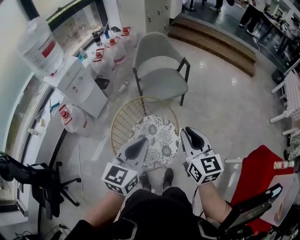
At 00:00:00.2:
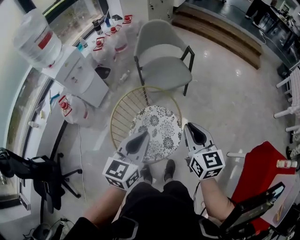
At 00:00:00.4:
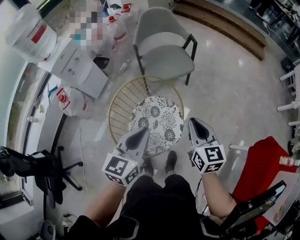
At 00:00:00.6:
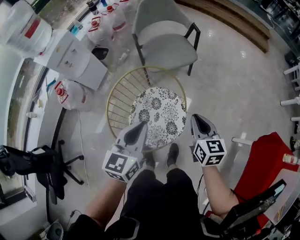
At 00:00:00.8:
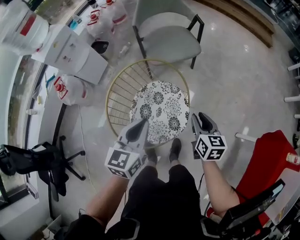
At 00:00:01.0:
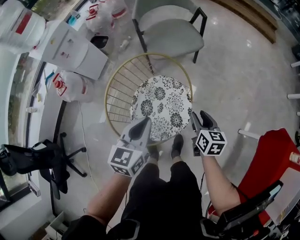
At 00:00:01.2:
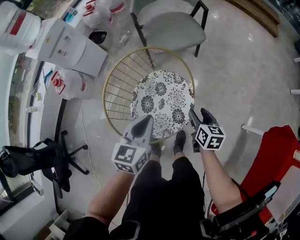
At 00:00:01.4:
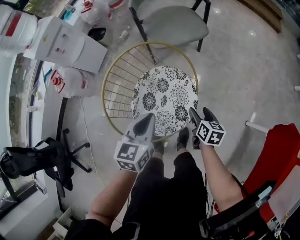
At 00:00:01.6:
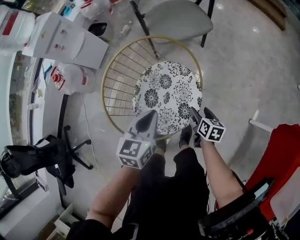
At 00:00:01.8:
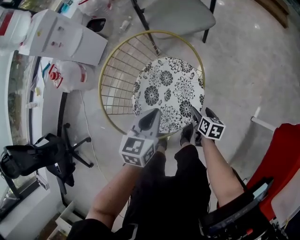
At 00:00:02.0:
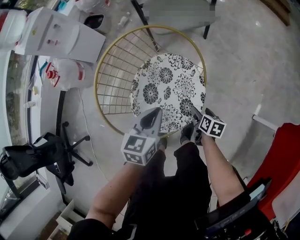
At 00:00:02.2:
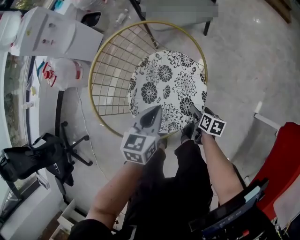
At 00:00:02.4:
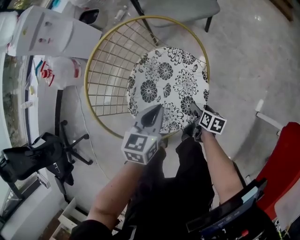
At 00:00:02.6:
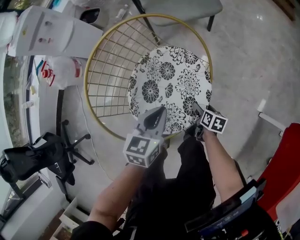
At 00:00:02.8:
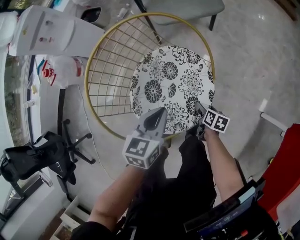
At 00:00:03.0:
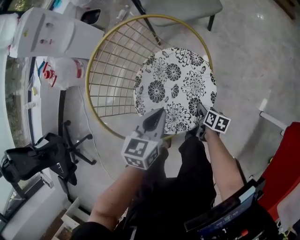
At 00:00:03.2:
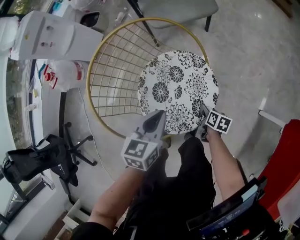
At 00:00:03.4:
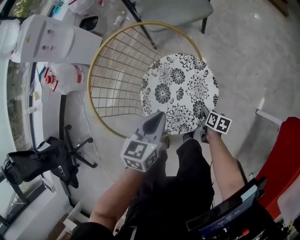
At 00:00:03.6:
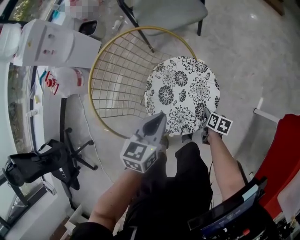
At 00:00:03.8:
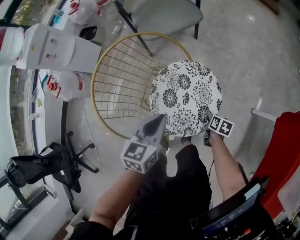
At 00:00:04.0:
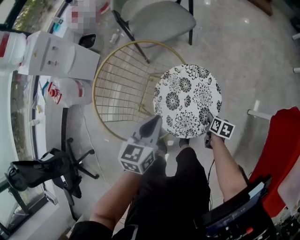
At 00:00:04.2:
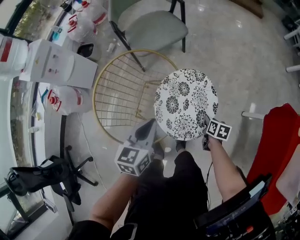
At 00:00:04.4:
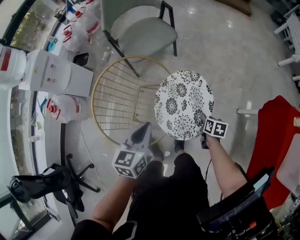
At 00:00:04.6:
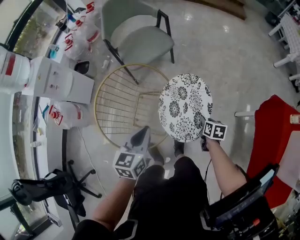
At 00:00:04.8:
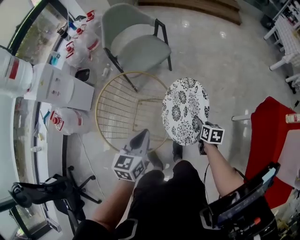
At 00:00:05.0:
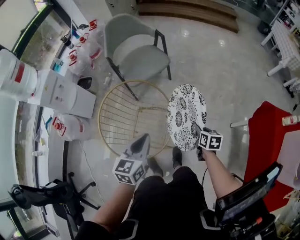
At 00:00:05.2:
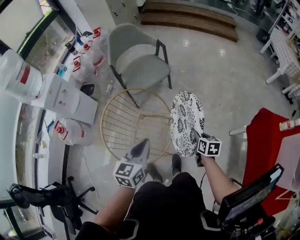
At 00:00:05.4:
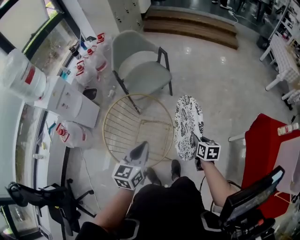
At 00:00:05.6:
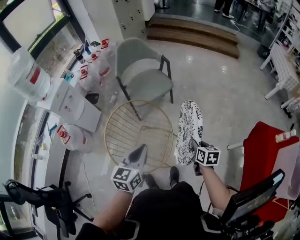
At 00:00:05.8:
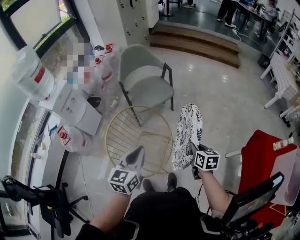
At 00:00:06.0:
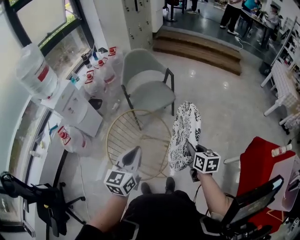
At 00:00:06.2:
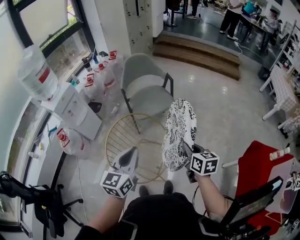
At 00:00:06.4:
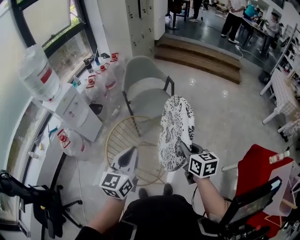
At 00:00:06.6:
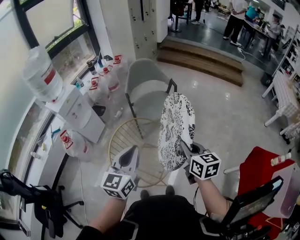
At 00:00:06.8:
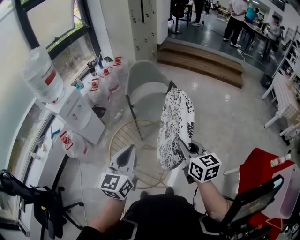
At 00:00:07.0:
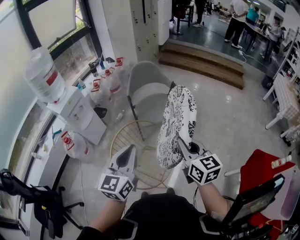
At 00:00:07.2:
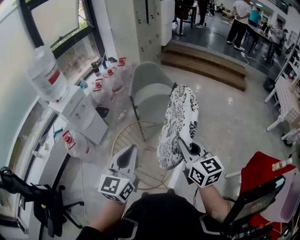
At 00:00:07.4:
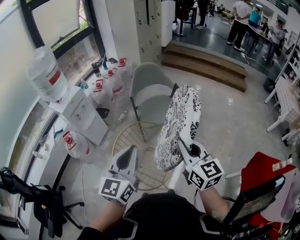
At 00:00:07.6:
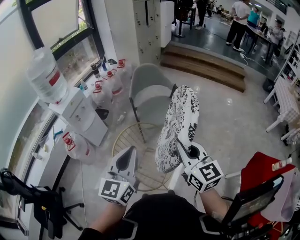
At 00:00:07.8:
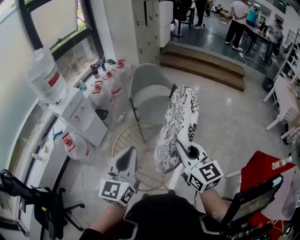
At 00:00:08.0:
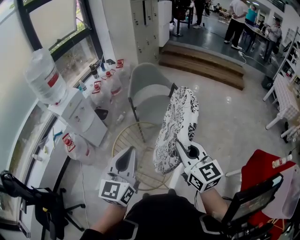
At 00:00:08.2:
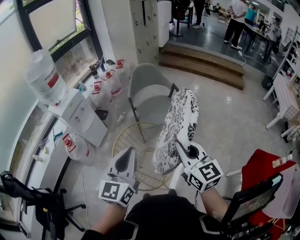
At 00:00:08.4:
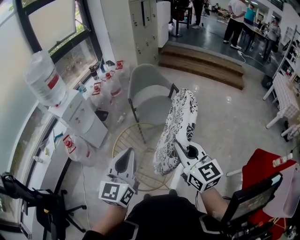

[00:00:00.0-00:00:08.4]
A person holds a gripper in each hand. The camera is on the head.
00:00:00.0 to 00:00:01.4: The right gripper moves downward, roughly 40 cm, tilts its fingers roughly 30 degrees downward, and opens. The left gripper heads downward, covering some 25 cm.
00:00:01.4 to 00:00:02.8: The right gripper moves downward, roughly 25 cm, while the left gripper is displaced downward by roughly 15 cm.
00:00:02.8 to 00:00:04.2: The left gripper is displaced upward by roughly 15 cm. Meanwhile the right gripper goes about 20 cm upward and to the right, and closes its fingers.
00:00:04.2 to 00:00:05.6: The right gripper moves upward, roughly 20 cm, and rotates about 20 degrees, while the left gripper travels upward by roughly 15 cm.
00:00:05.6 to 00:00:07.0: The left gripper heads upward, covering some 15 cm, and turns by some 20 degrees. Meanwhile the right gripper shifts some 30 cm upward and to the left, and tips its fingers upward by roughly 30 degrees.
00:00:07.0 to 00:00:08.4: The right gripper changes place by approximately 5 cm.

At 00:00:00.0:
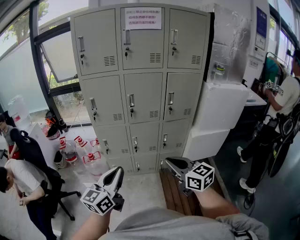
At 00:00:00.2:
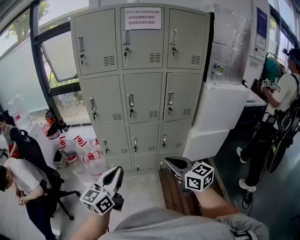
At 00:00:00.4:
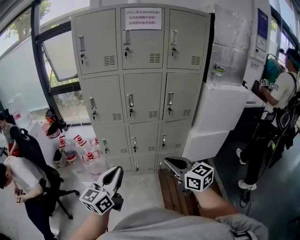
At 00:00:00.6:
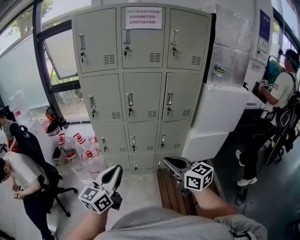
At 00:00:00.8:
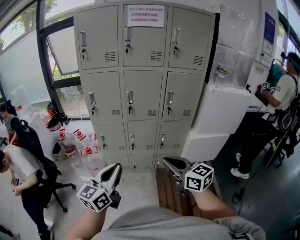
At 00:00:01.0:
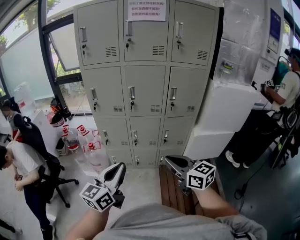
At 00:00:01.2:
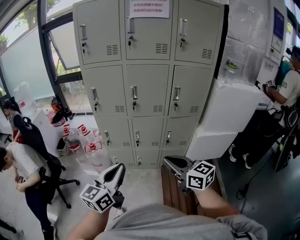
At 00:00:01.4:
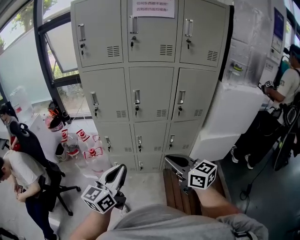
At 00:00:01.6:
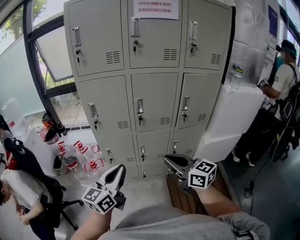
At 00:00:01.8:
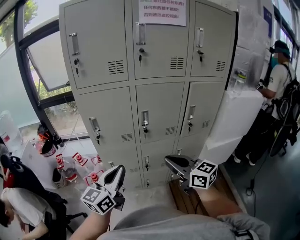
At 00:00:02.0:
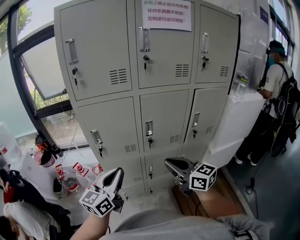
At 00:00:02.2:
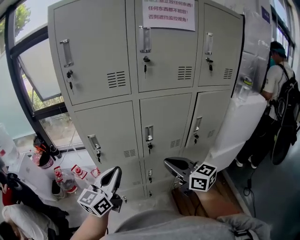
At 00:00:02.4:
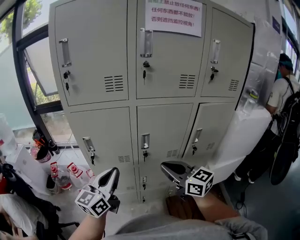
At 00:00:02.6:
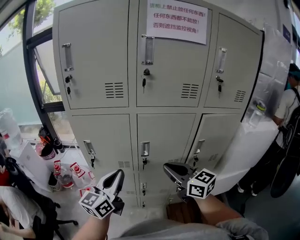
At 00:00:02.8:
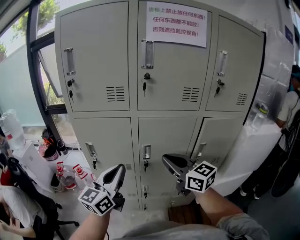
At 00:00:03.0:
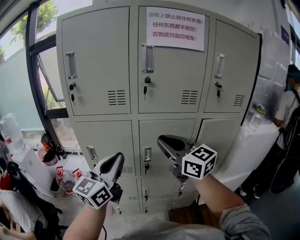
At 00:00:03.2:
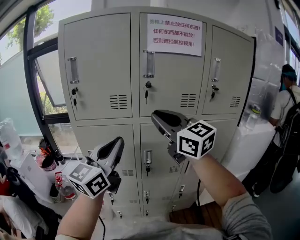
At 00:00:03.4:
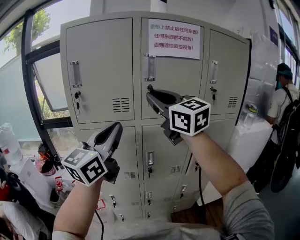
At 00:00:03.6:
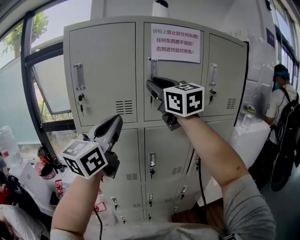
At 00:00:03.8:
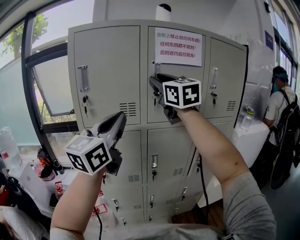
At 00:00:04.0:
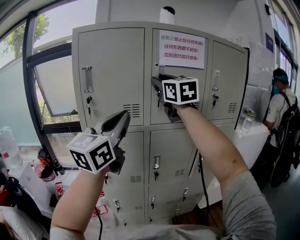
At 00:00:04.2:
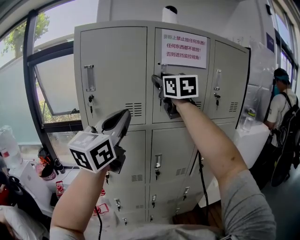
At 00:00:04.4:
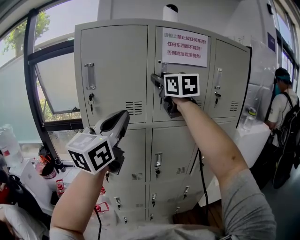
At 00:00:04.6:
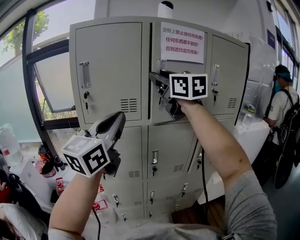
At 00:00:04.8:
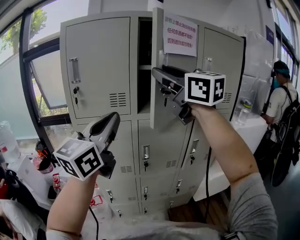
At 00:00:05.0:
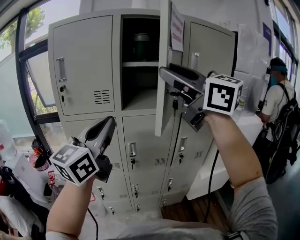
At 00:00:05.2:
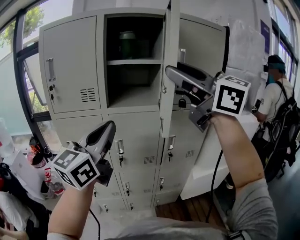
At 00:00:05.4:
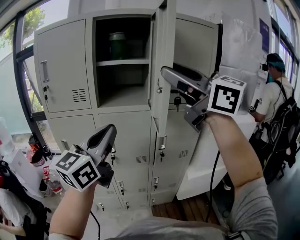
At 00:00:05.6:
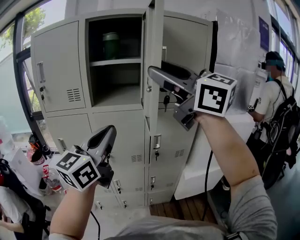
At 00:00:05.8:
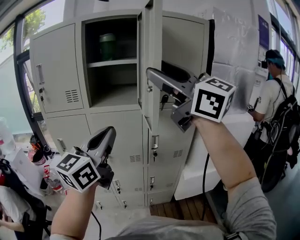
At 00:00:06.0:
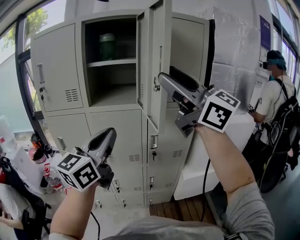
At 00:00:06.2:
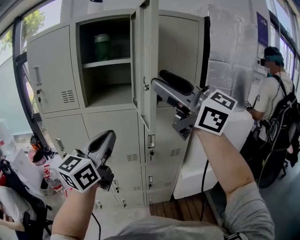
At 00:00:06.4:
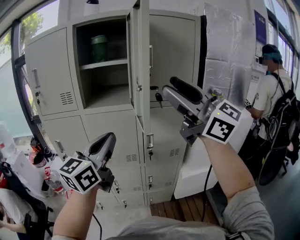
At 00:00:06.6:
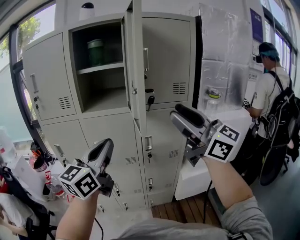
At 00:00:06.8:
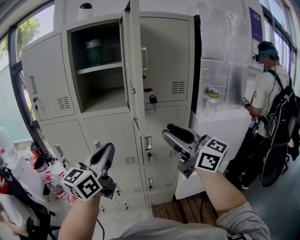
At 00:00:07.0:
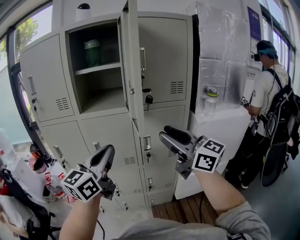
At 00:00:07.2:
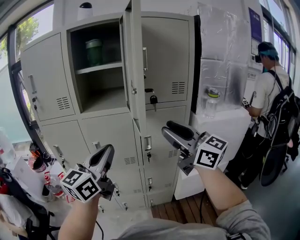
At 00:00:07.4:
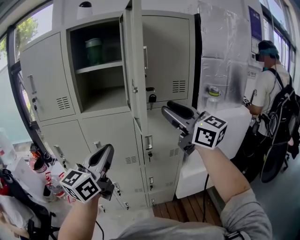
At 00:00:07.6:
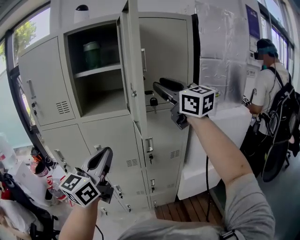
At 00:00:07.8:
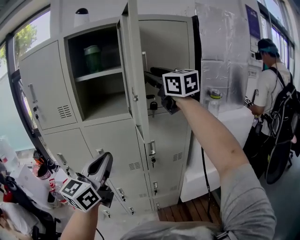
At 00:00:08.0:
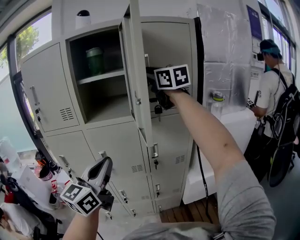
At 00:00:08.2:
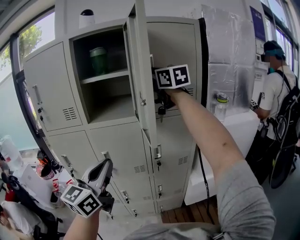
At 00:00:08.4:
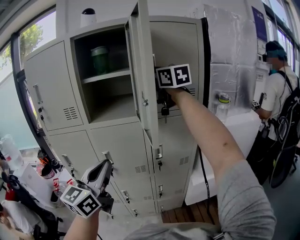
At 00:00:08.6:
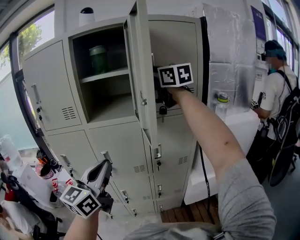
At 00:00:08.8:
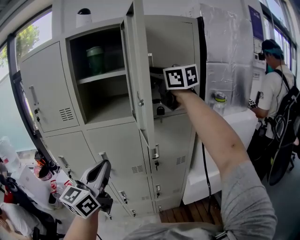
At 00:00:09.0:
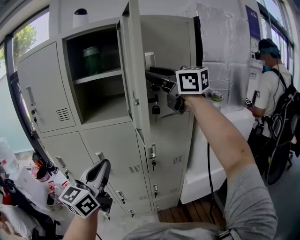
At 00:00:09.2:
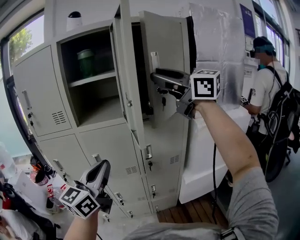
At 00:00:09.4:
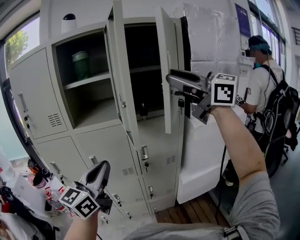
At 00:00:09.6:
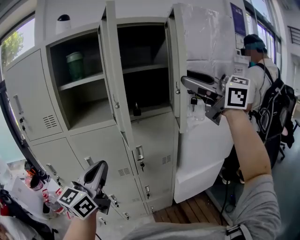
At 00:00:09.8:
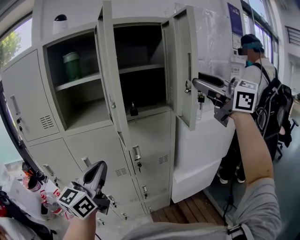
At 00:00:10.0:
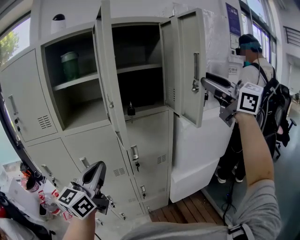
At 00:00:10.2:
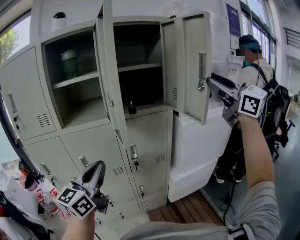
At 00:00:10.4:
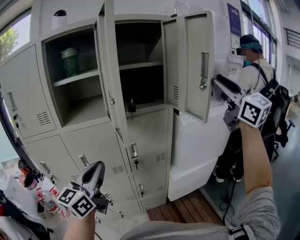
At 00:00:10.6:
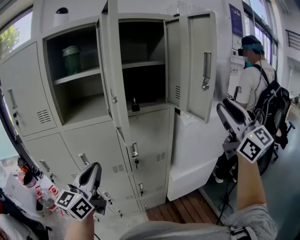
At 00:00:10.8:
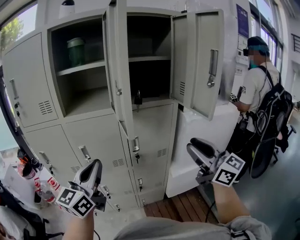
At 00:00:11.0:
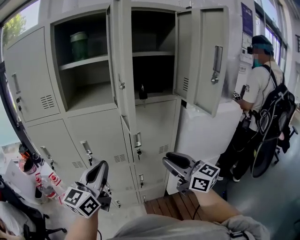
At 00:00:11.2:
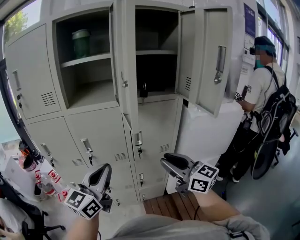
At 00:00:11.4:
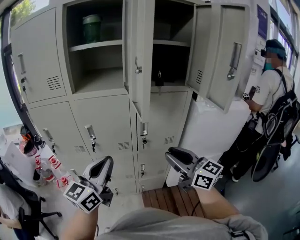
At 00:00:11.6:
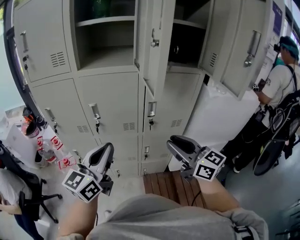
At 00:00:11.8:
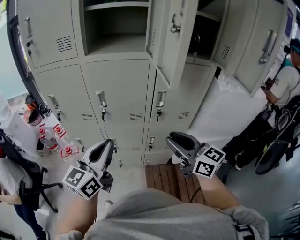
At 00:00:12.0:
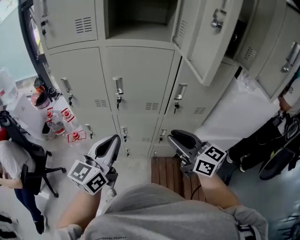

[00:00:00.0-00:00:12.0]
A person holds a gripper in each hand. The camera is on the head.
00:00:00.0 to 00:00:01.6: Both grippers move forward, roughly 15 cm.
00:00:01.6 to 00:00:03.0: Both grippers move forward and upward, about 30 cm.
00:00:03.0 to 00:00:04.4: The left gripper goes some 20 cm upward; the right gripper is displaced upward and forward by some 25 cm, swivels approximately 20 degrees, and opens.
00:00:04.4 to 00:00:06.0: The left gripper is displaced to the right by some 25 cm; the right gripper shifts approximately 40 cm to the right and backward, and swivels some 40 degrees.
00:00:06.0 to 00:00:07.6: The right gripper is displaced forward and to the right by about 15 cm, moves about 20 cm downward and comes back, and turns by roughly 20 degrees.
00:00:07.6 to 00:00:09.0: The right gripper shifts about 5 cm upward, and goes forward and returns, approximately 10 cm each way.
00:00:09.0 to 00:00:10.4: The right gripper travels to the right and backward by approximately 30 cm, and swivels about 40 degrees.
00:00:10.4 to 00:00:12.0: The right gripper goes about 50 cm downward and to the left, and turns by roughly 50 degrees, while the left gripper heads downward and to the left, covering about 20 cm.

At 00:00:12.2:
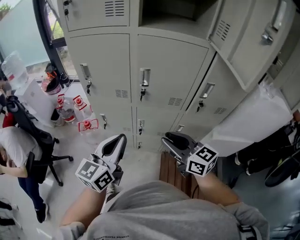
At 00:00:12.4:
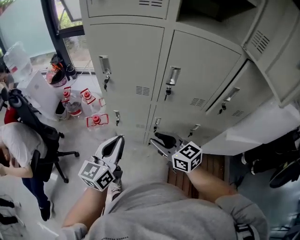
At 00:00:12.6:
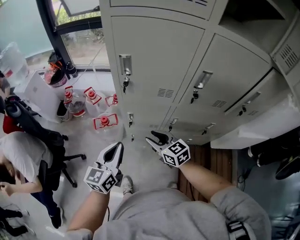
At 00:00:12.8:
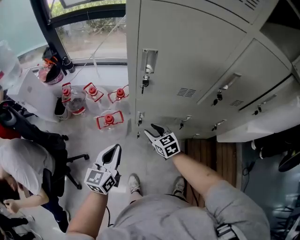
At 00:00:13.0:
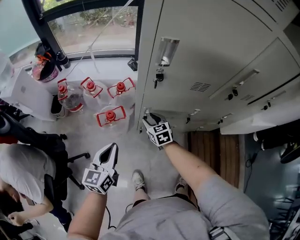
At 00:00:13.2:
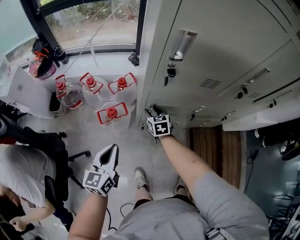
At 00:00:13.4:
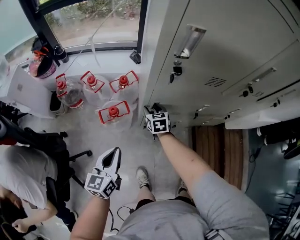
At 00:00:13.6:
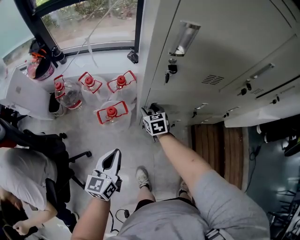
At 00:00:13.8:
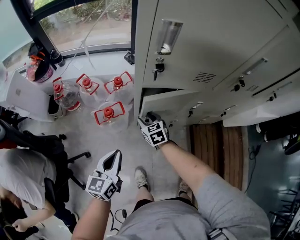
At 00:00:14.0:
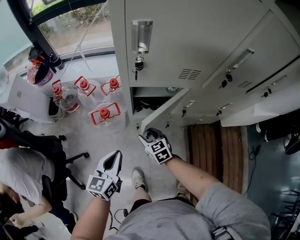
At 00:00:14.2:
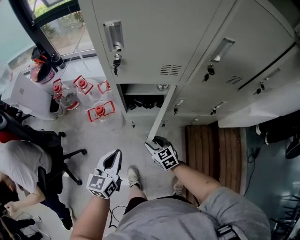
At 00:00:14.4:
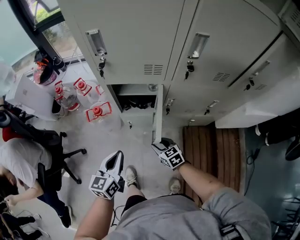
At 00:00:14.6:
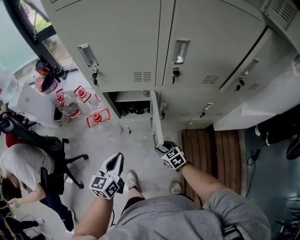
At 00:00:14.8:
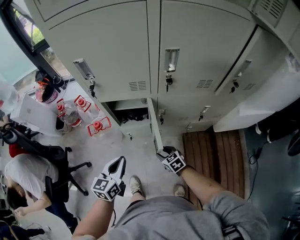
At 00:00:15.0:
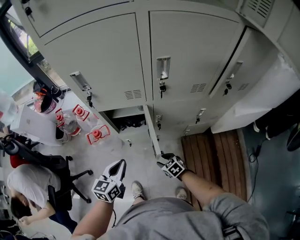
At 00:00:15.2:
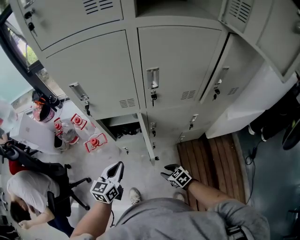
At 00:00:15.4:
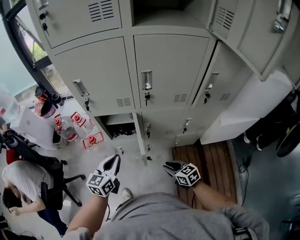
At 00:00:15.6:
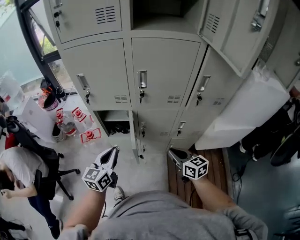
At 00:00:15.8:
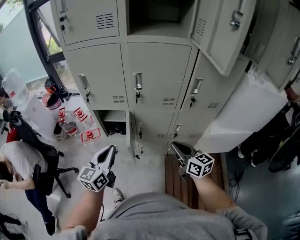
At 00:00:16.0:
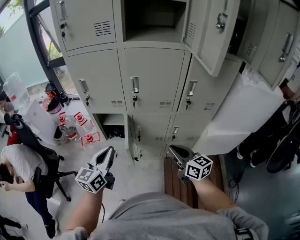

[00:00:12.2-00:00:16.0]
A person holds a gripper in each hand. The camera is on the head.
00:00:12.2 to 00:00:13.4: Both grippers are carried to the left and forward, some 50 cm. Both grippers move downward, roughly 35 cm. The right gripper tips its fingers downward by about 30 degrees.
00:00:13.4 to 00:00:14.8: The left gripper travels to the right by roughly 25 cm. The right gripper heads backward and to the right, covering some 35 cm, and rotates some 30 degrees.
00:00:14.8 to 00:00:16.0: The left gripper heads upward and to the right, covering roughly 25 cm, while the right gripper travels upward and to the right by approximately 40 cm, tilts its fingers approximately 40 degrees upward, and closes up.
